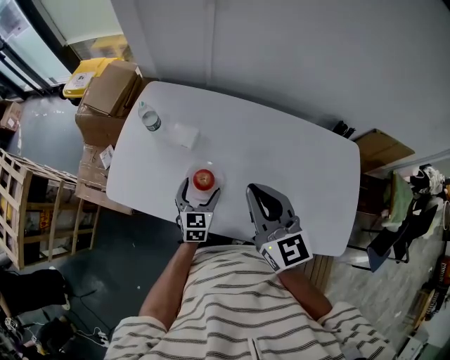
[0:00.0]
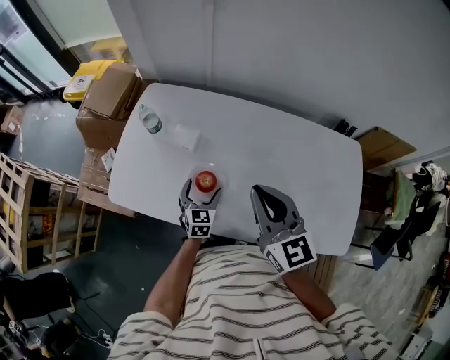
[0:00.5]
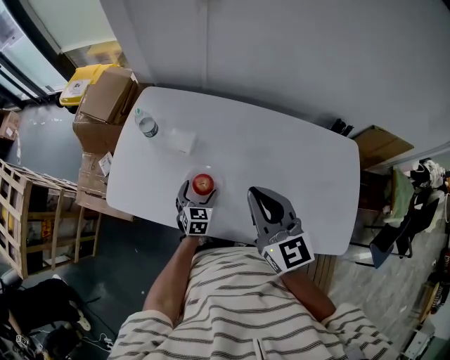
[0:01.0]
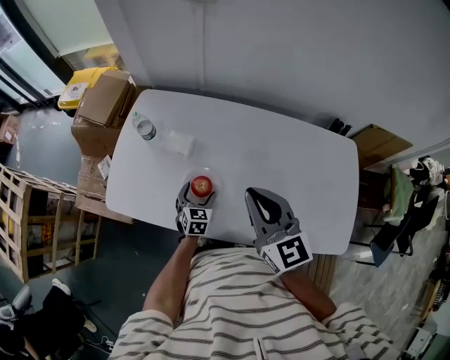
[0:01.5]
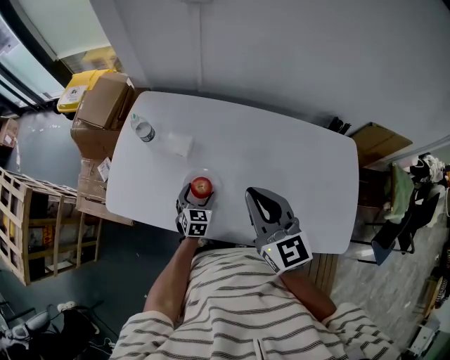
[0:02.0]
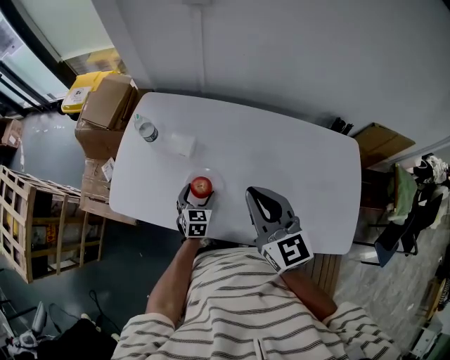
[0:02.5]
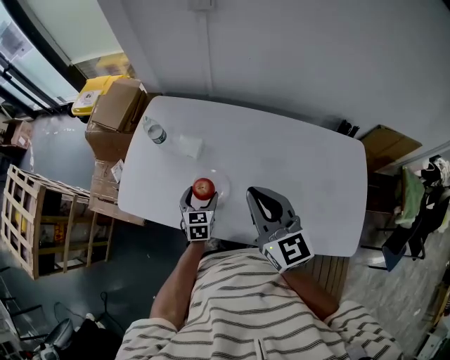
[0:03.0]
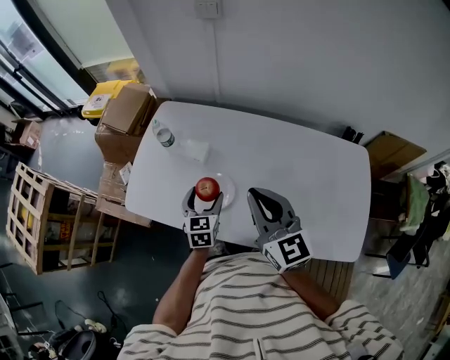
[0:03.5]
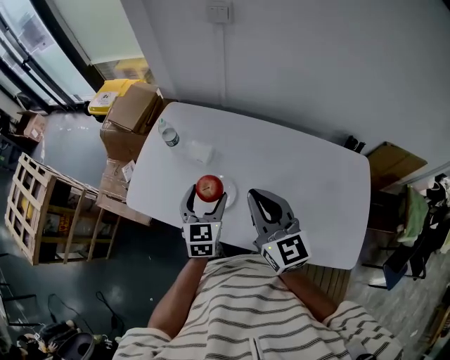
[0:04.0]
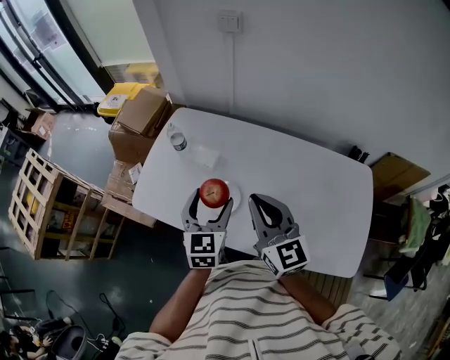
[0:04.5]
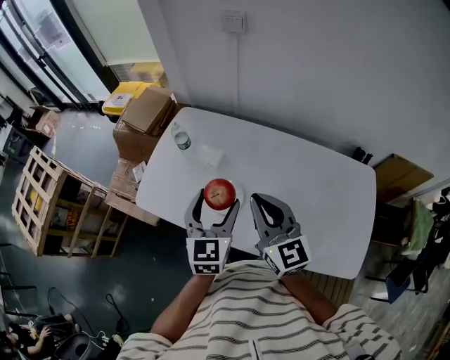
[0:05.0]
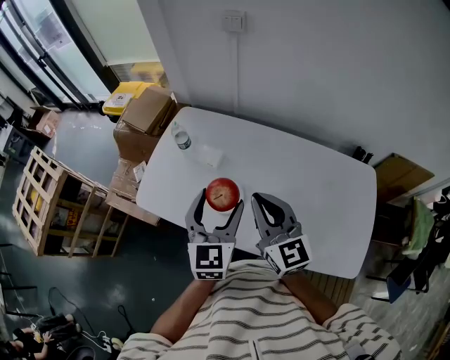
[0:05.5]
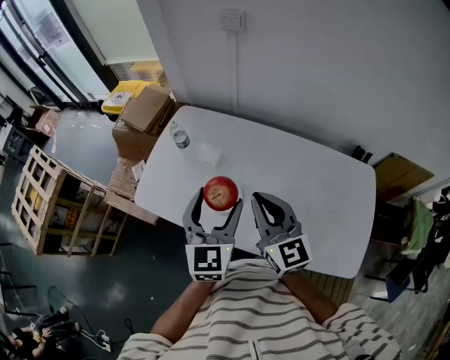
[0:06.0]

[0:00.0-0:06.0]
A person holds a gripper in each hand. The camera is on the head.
0:00.0 to 0:02.0: The left gripper shifts roughly 10 cm downward.
0:02.0 to 0:04.0: The left gripper goes some 20 cm upward.
0:04.0 to 0:06.0: The left gripper heads upward, covering roughly 15 cm.

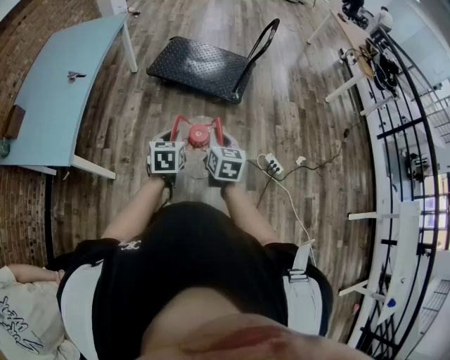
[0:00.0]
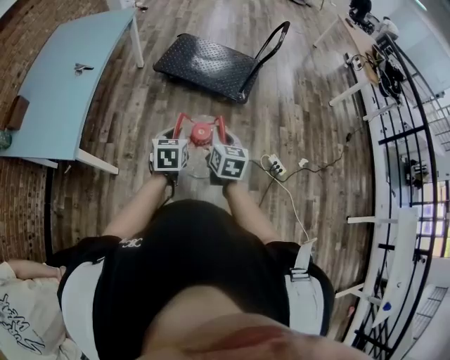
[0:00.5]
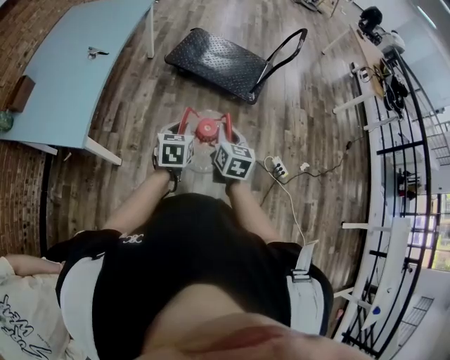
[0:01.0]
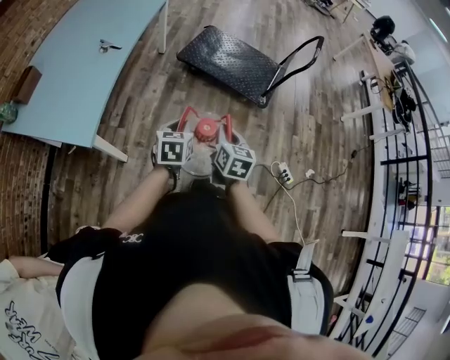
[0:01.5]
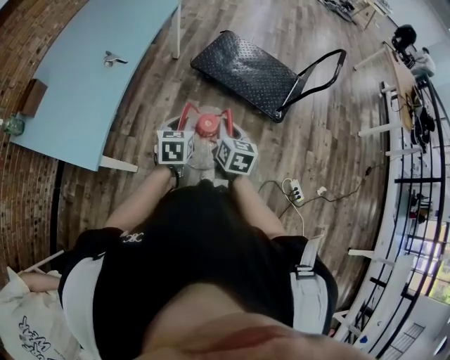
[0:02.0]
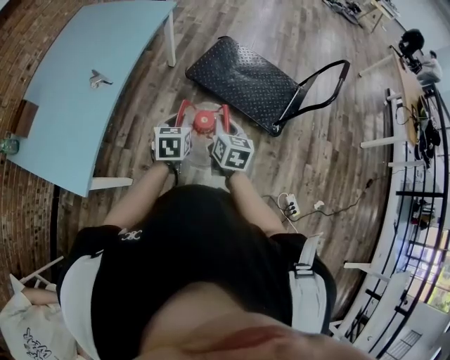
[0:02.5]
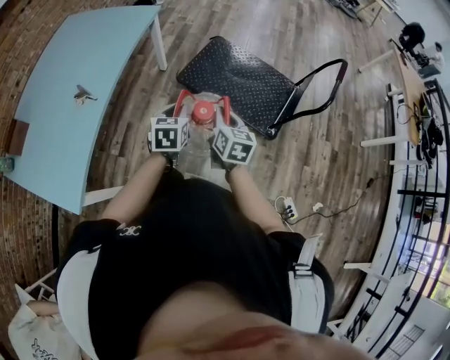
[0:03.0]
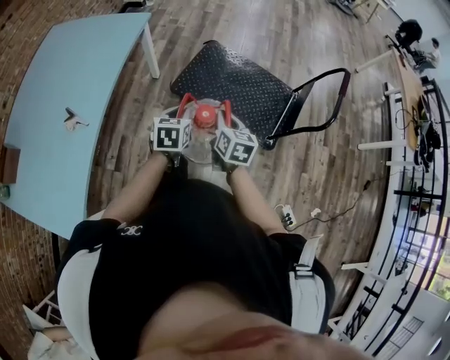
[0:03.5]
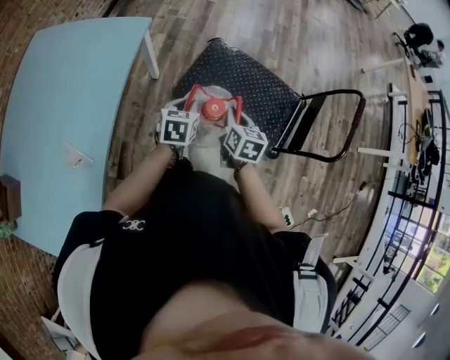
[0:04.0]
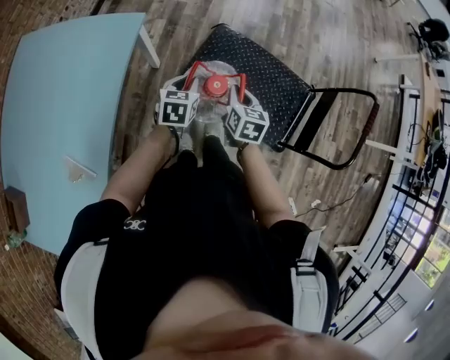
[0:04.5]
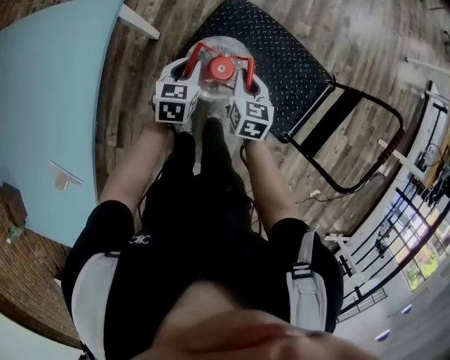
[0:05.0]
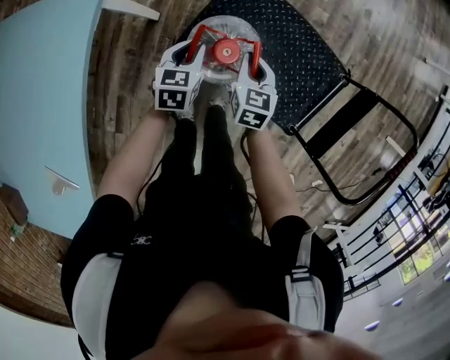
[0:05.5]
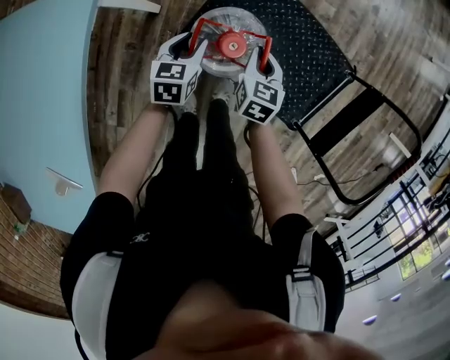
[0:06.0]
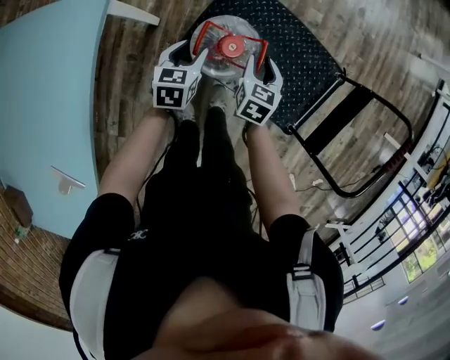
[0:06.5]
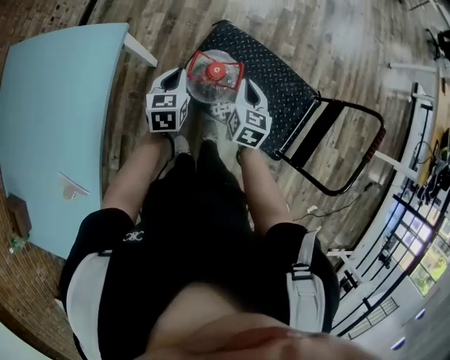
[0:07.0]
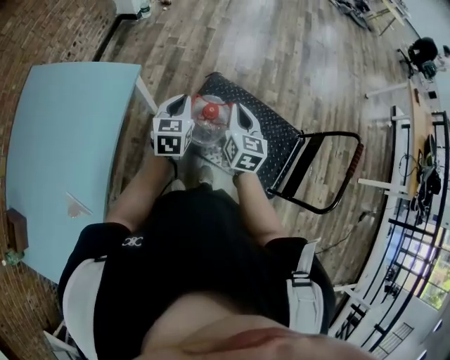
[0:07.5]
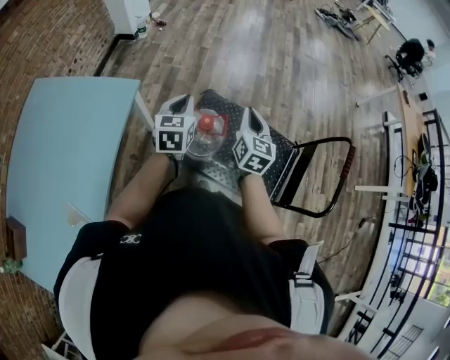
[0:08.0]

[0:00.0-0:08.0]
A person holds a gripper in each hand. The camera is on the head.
0:00.0 to 0:02.0: Both grippers travel together to the left and forward, some 25 cm.
0:02.0 to 0:04.0: The pair of grippers is taken forward, about 50 cm.
0:04.0 to 0:06.0: The grippers both shift forward and downward by about 30 cm. The left gripper opens up.
0:06.0 to 0:08.0: The two grippers go some 35 cm upward. The left gripper changes its angle by roughly 20 degrees, and closes; the right gripper rotates about 30 degrees, and opens, then closes again.

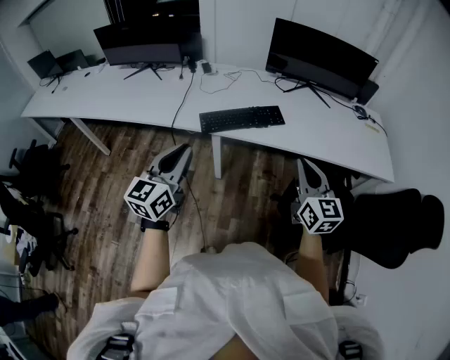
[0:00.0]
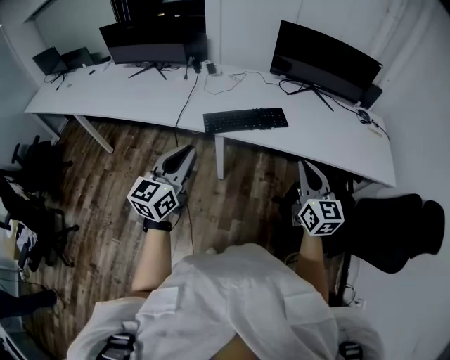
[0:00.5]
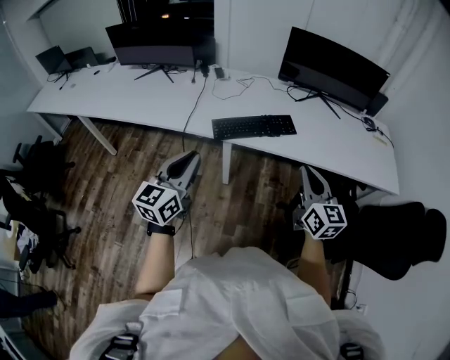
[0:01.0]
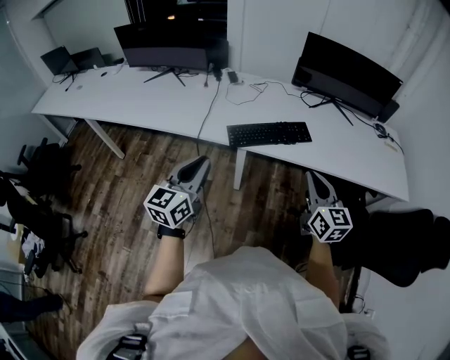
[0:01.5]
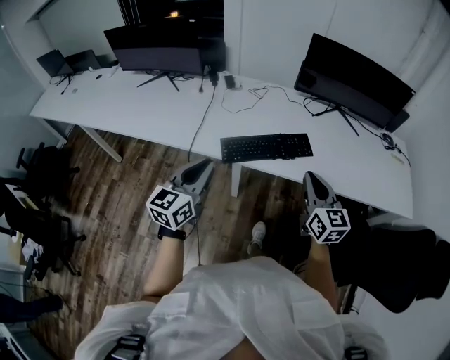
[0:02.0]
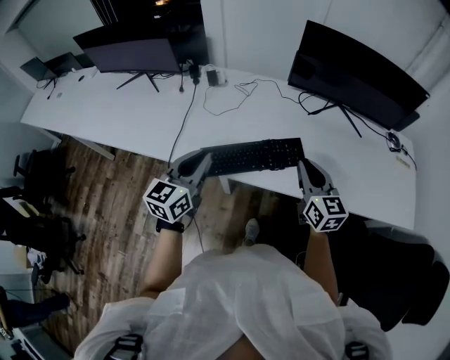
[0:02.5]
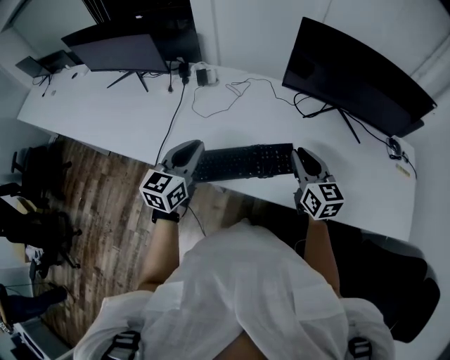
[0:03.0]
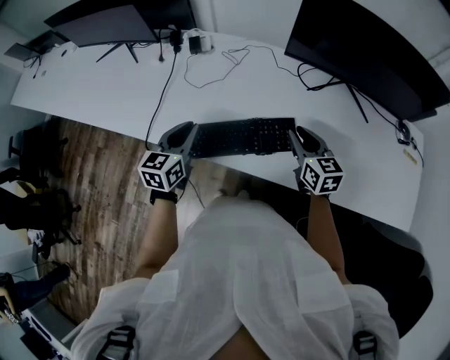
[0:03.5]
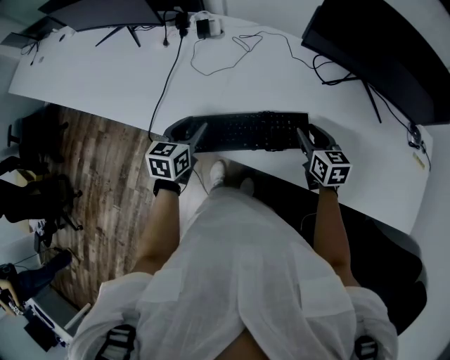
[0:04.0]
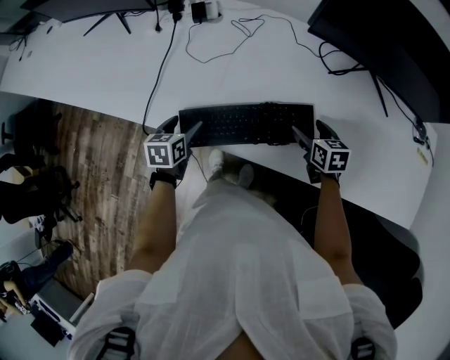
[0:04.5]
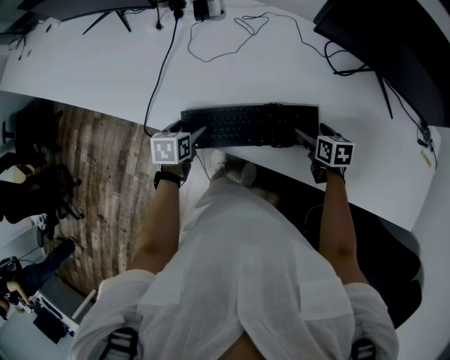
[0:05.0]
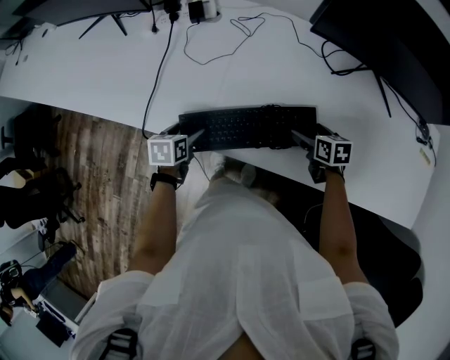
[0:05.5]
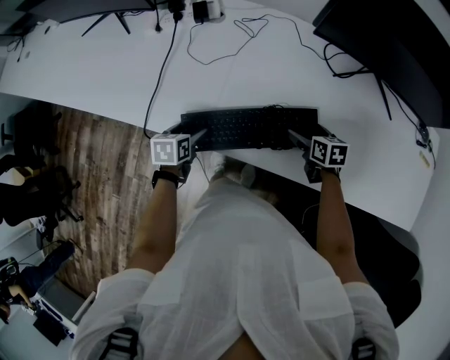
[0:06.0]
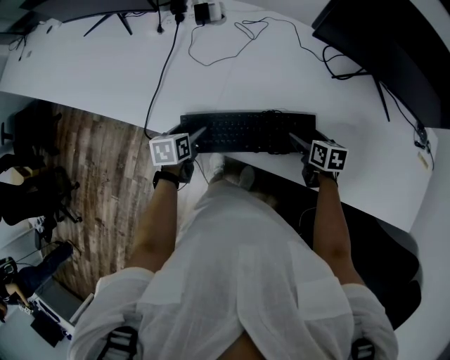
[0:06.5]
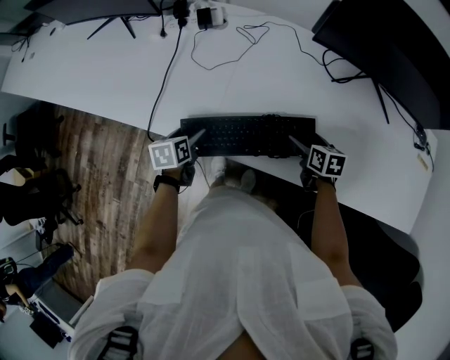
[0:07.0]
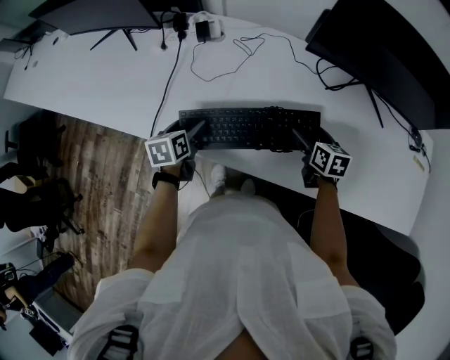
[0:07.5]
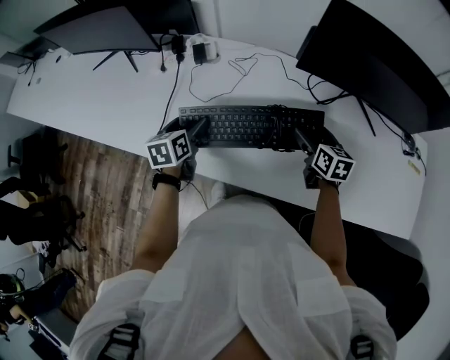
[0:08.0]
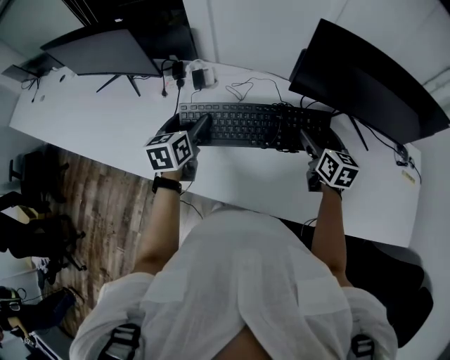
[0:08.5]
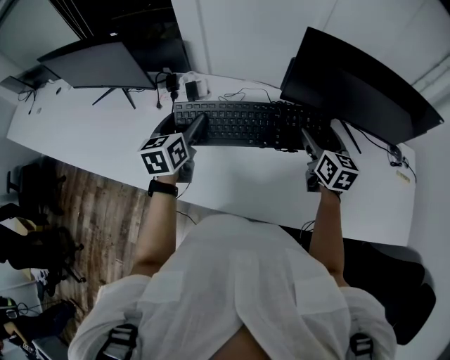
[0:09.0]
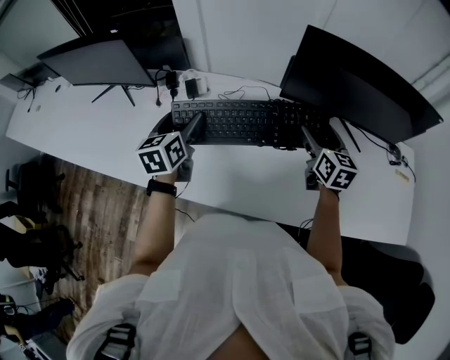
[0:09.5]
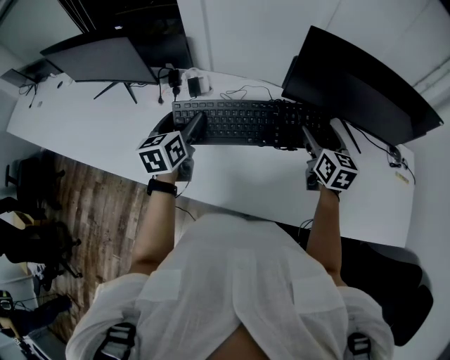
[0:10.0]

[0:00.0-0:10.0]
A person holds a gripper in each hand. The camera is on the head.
0:00.0 to 0:02.0: The right gripper travels forward and to the left by approximately 15 cm. The left gripper heads forward, covering roughly 15 cm.
0:02.0 to 0:04.0: Both grippers travel together forward and downward, approximately 35 cm. The left gripper points its fingers about 30 degrees further downward, and opens its fingers, while the right gripper changes its angle by approximately 30 degrees.
0:04.0 to 0:06.0: The grippers both shift downward by approximately 10 cm. The right gripper turns by some 20 degrees, and opens. Meanwhile the left gripper rotates approximately 30 degrees, and opens its fingers.
0:06.0 to 0:08.0: The grippers both shift upward and forward by roughly 15 cm. The right gripper rotates about 20 degrees, while the left gripper rotates roughly 20 degrees.
0:08.0 to 0:10.0: Both grippers travel together upward, about 15 cm.

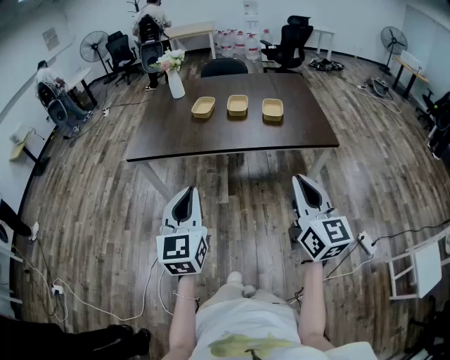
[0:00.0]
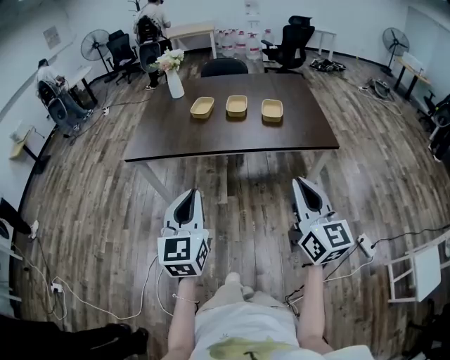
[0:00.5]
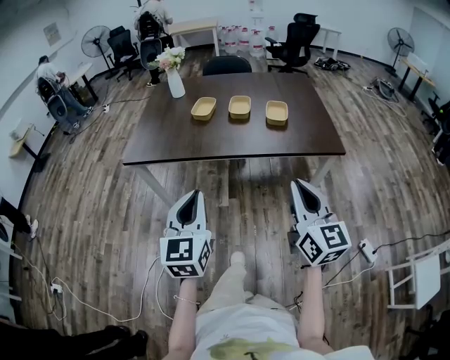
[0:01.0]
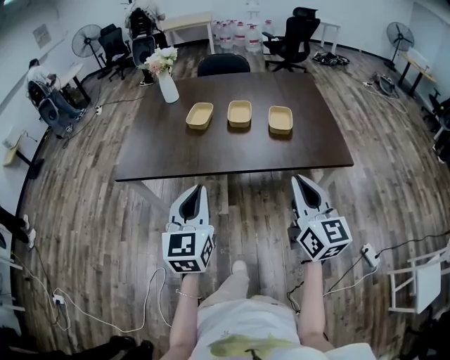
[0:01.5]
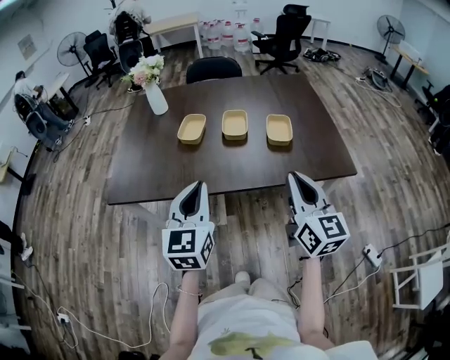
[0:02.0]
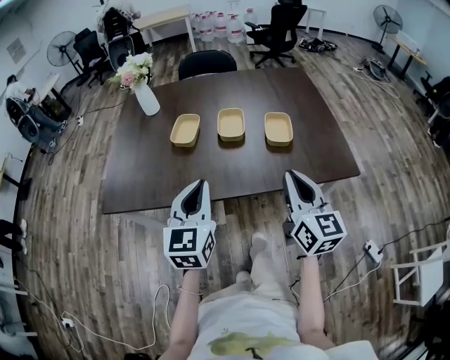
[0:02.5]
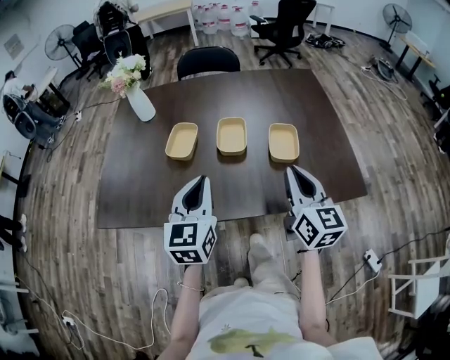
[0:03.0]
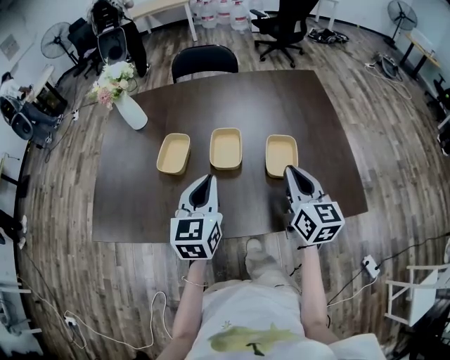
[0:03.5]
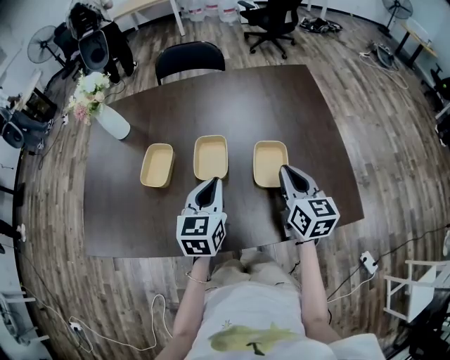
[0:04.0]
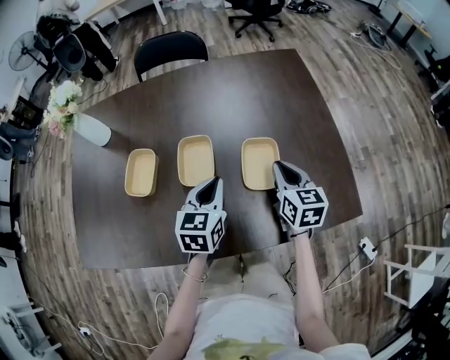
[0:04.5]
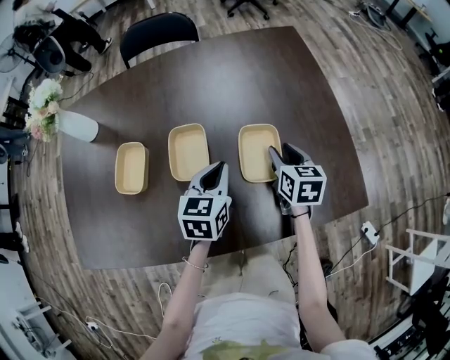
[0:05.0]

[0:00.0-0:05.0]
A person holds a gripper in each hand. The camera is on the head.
0:00.0 to 0:02.5: Both grippers move forward, roughly 30 cm.
0:02.5 to 0:05.0: The right gripper goes about 40 cm forward and downward, angles its fingers downward, by some 30 degrees, and opens its fingers. Meanwhile the left gripper moves forward, downward and to the right, roughly 40 cm, and changes its angle by approximately 30 degrees.
